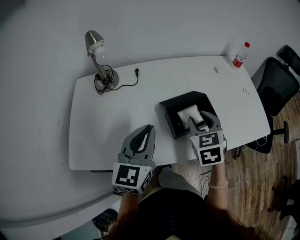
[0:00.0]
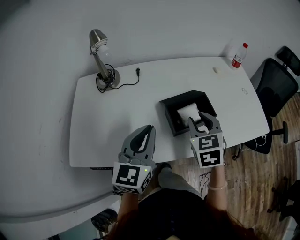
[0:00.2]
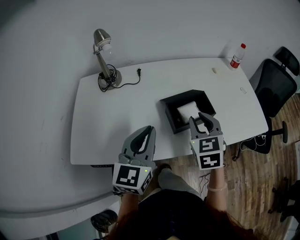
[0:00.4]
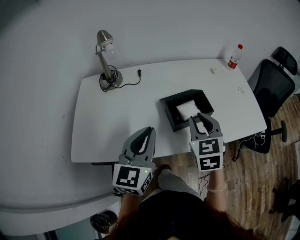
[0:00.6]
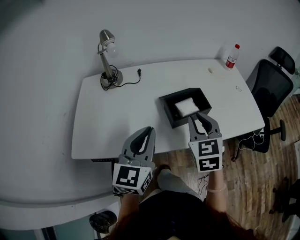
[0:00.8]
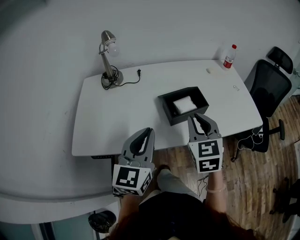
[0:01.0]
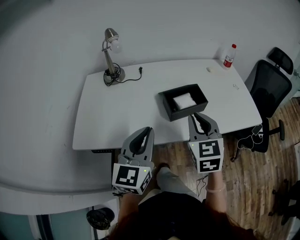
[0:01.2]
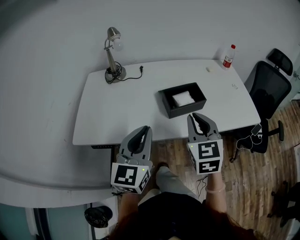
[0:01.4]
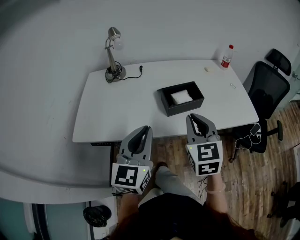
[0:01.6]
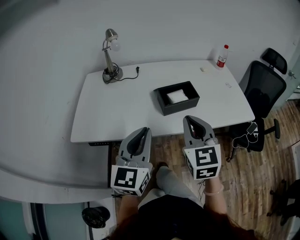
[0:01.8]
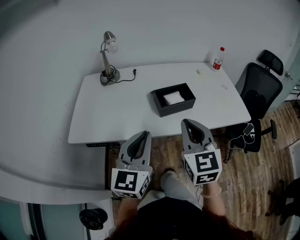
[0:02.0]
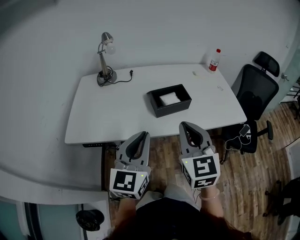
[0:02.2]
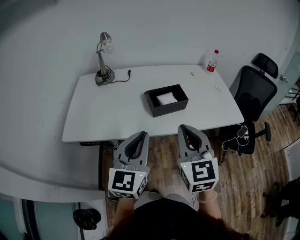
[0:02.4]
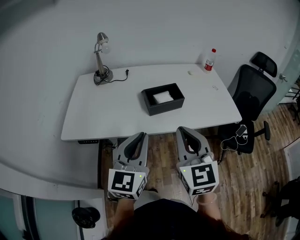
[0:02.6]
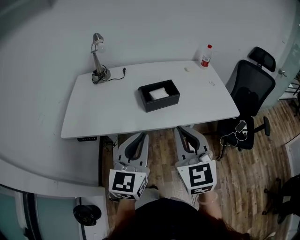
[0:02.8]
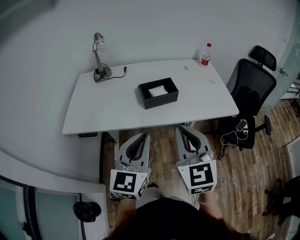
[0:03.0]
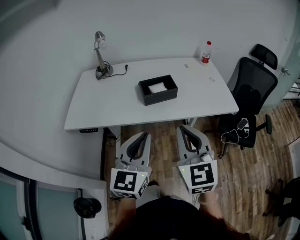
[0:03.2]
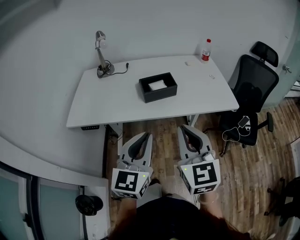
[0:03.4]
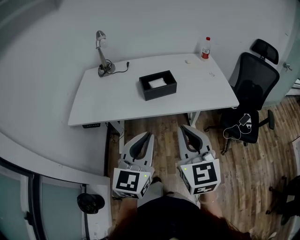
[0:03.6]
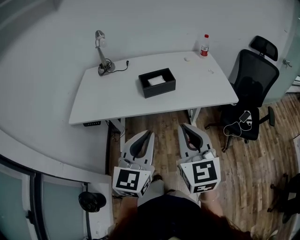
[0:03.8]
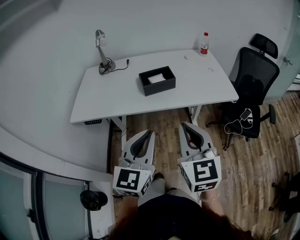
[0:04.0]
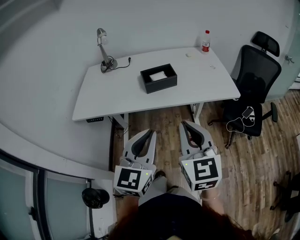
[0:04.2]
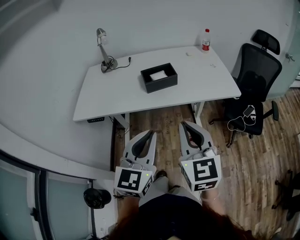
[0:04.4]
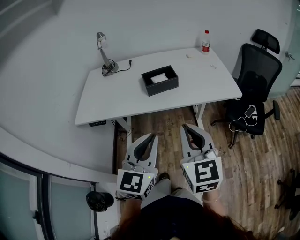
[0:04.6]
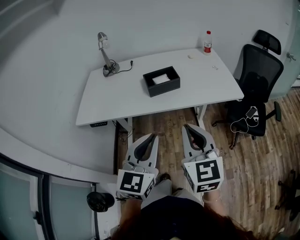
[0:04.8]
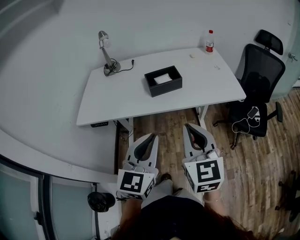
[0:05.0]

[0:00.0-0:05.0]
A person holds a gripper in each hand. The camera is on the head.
0:00.0 to 0:01.6: The left gripper heads backward, covering about 15 cm. Meanwhile the right gripper heads backward and upward, covering roughly 20 cm, swivels roughly 20 degrees, and closes up.
0:01.6 to 0:03.4: The left gripper heads to the right and backward, covering approximately 20 cm; the right gripper is displaced backward and to the right by approximately 20 cm.
0:03.4 to 0:05.0: There are only small adjustments of the grippers.

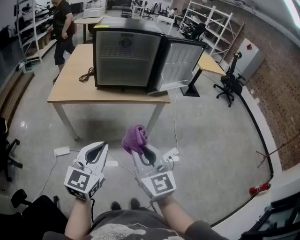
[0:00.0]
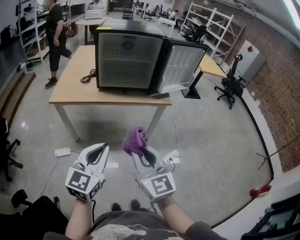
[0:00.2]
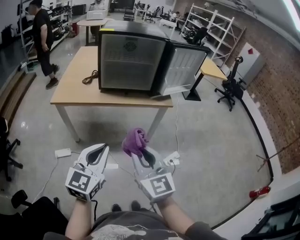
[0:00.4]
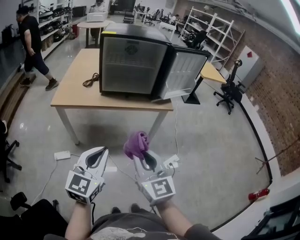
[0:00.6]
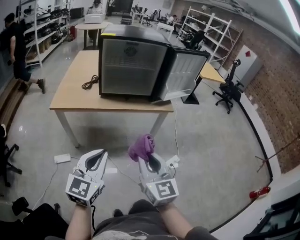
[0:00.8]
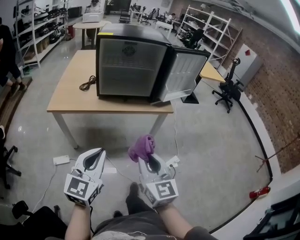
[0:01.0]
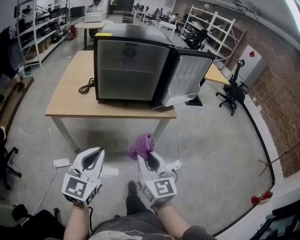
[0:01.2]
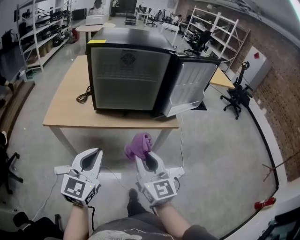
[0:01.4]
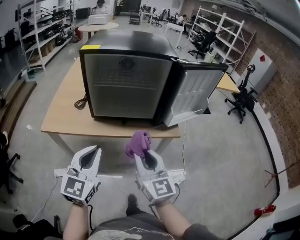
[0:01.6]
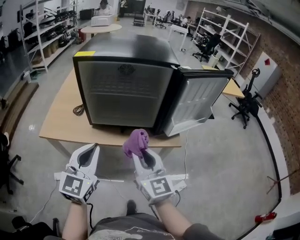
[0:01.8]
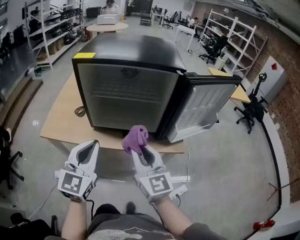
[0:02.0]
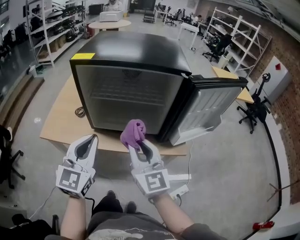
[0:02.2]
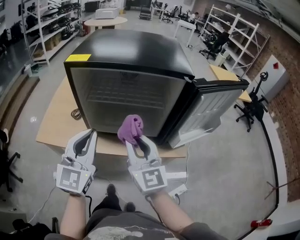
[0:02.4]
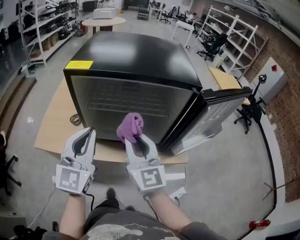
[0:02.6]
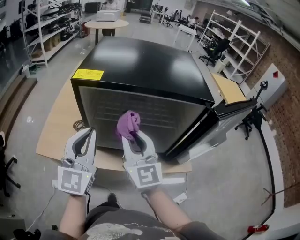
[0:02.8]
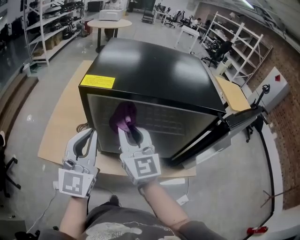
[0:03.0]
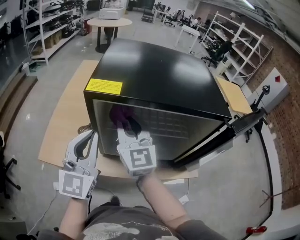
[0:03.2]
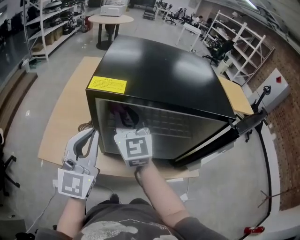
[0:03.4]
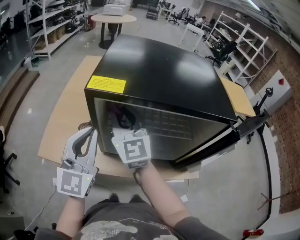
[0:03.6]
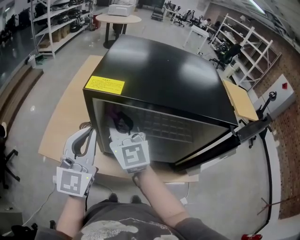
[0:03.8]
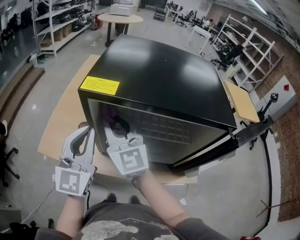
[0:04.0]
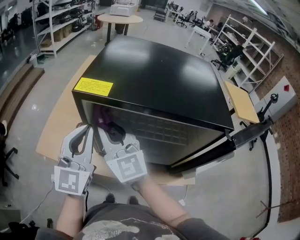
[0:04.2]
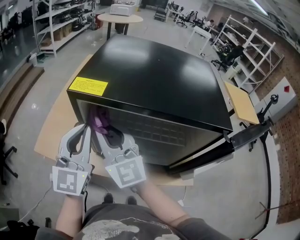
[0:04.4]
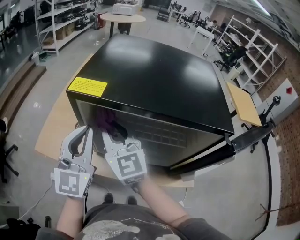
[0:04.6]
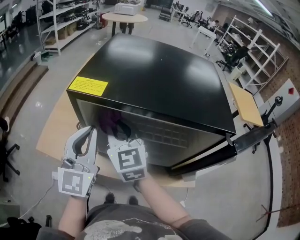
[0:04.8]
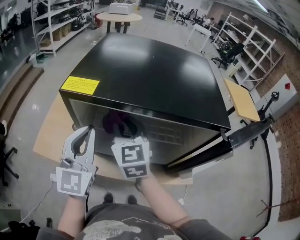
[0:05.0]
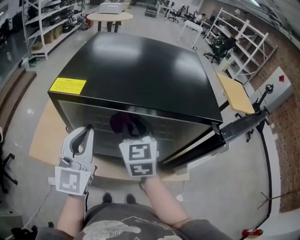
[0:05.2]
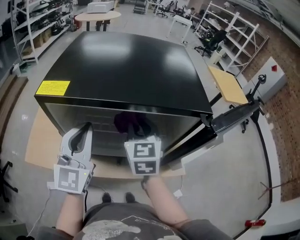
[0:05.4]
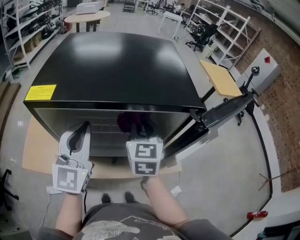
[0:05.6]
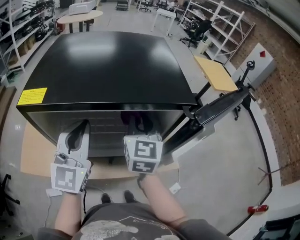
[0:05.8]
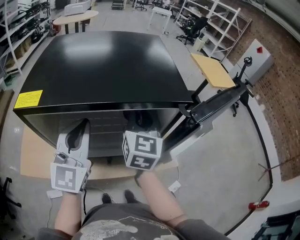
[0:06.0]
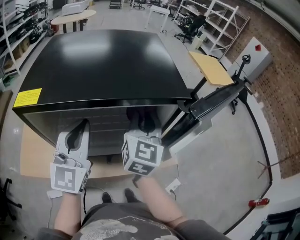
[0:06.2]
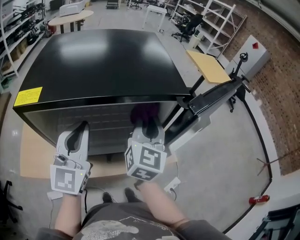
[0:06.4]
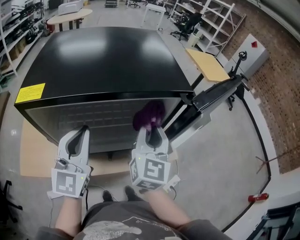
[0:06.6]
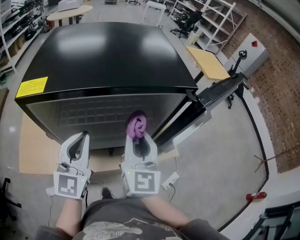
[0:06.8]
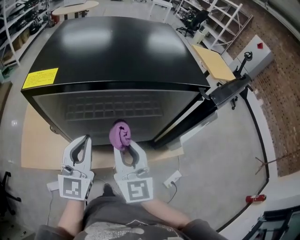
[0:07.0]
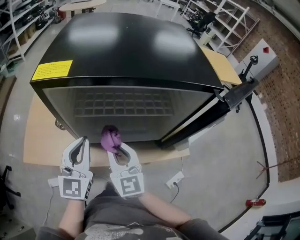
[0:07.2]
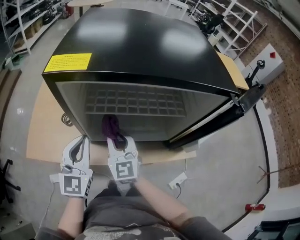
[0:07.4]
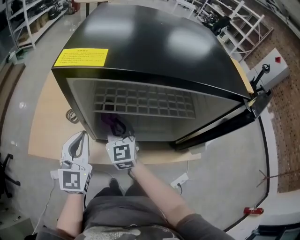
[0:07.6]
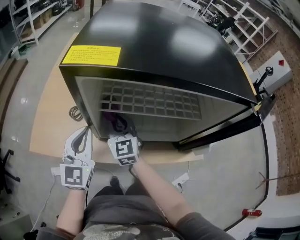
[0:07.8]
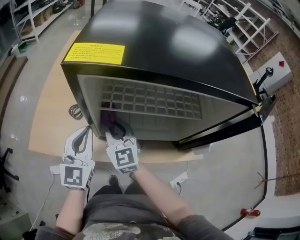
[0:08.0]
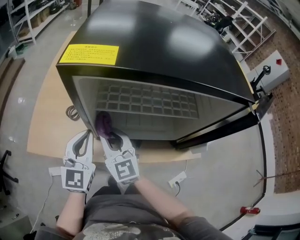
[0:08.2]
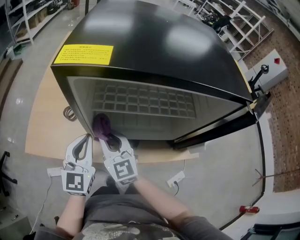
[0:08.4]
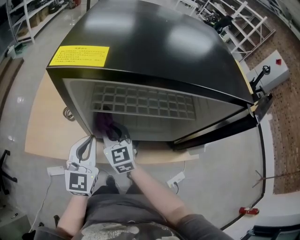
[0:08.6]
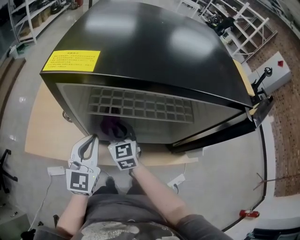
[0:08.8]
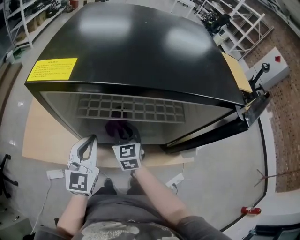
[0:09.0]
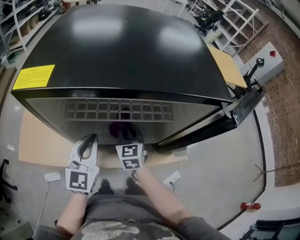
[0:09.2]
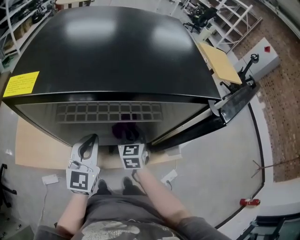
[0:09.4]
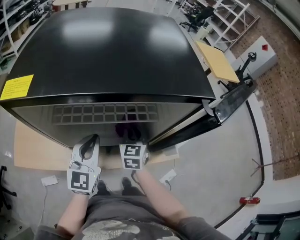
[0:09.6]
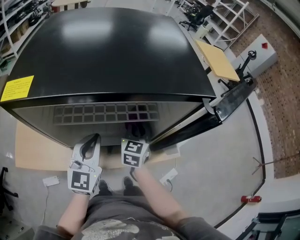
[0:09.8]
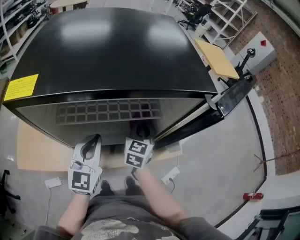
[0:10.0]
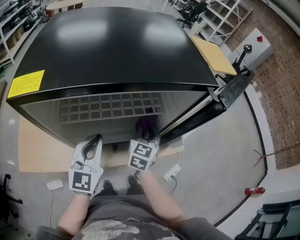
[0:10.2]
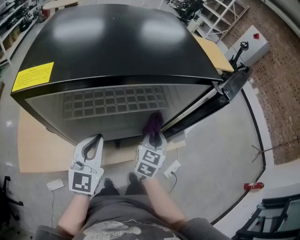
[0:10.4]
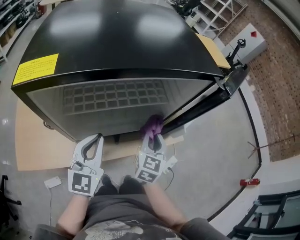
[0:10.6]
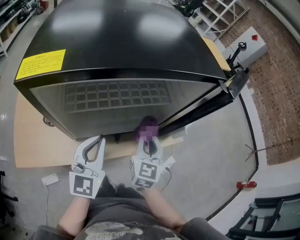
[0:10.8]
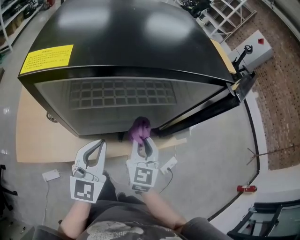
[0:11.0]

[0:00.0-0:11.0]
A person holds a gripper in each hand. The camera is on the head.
0:00.0 to 0:01.6: Both grippers move forward, roughly 25 cm.
0:01.6 to 0:03.2: The left gripper goes approximately 25 cm forward. Meanwhile the right gripper is displaced forward and to the left by roughly 35 cm.
0:04.8 to 0:06.2: The right gripper ends up some 25 cm from where it was, and turns by approximately 50 degrees, while the left gripper moves approximately 10 cm.
0:06.2 to 0:07.8: The right gripper ends up some 35 cm from where it was, and rotates roughly 40 degrees, while the left gripper moves some 20 cm.
0:07.8 to 0:09.4: The two grippers go some 20 cm to the right. The right gripper swivels about 30 degrees.
0:09.4 to 0:11.0: The left gripper moves backward, some 5 cm. The right gripper goes roughly 15 cm backward and upward, and turns by about 20 degrees.

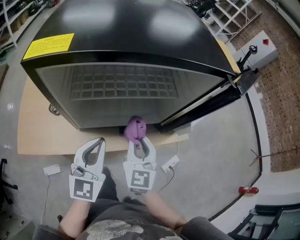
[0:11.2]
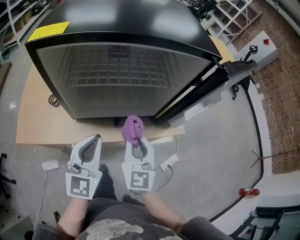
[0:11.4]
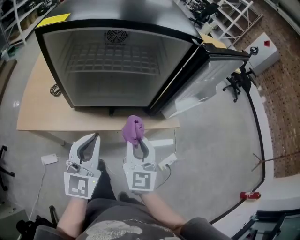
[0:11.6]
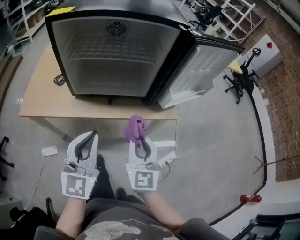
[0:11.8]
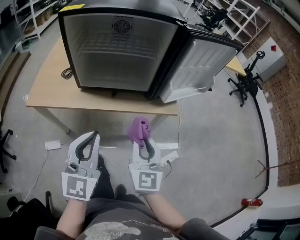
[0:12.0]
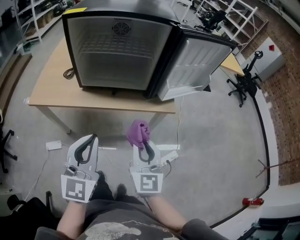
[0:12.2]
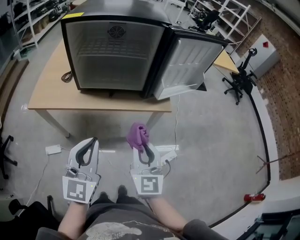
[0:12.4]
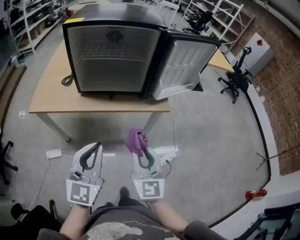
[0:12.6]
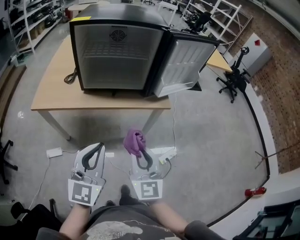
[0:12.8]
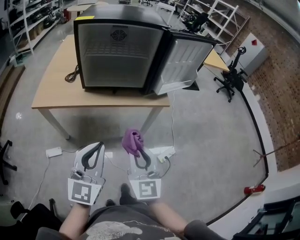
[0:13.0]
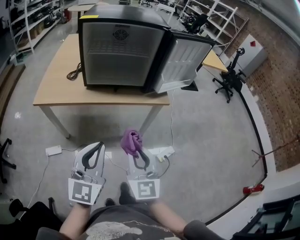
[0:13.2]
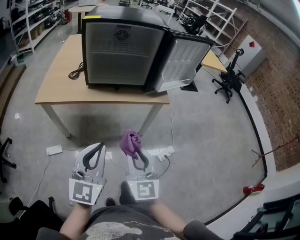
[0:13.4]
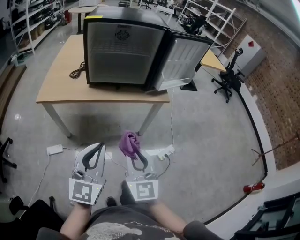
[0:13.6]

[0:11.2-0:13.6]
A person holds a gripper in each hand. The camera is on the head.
0:11.2 to 0:12.4: The grippers both shift backward and to the right by about 25 cm.
0:12.4 to 0:13.6: The right gripper is displaced backward and to the left by about 15 cm; the left gripper travels backward by some 15 cm.

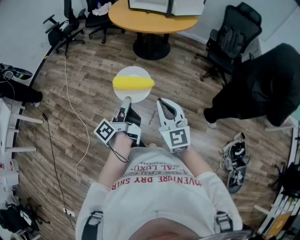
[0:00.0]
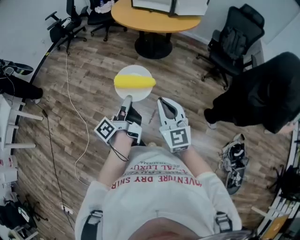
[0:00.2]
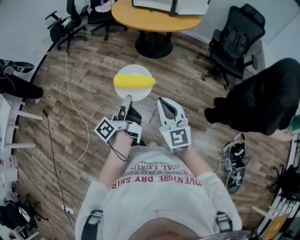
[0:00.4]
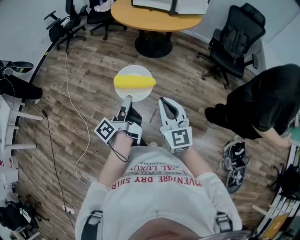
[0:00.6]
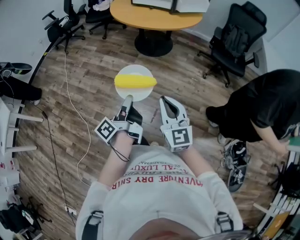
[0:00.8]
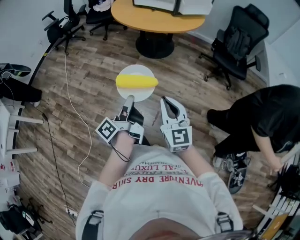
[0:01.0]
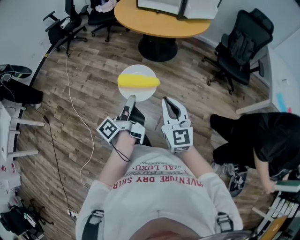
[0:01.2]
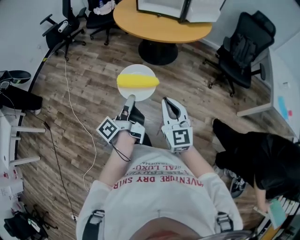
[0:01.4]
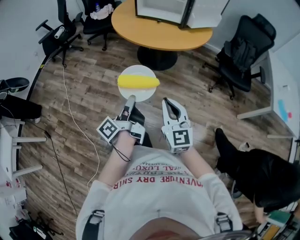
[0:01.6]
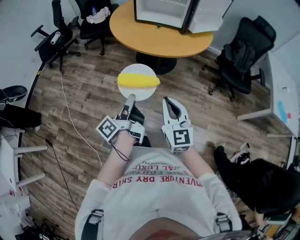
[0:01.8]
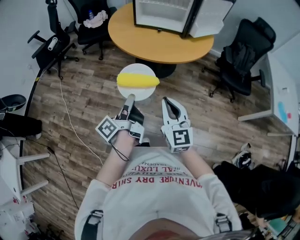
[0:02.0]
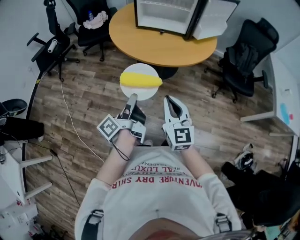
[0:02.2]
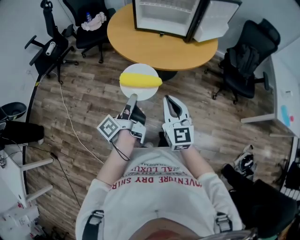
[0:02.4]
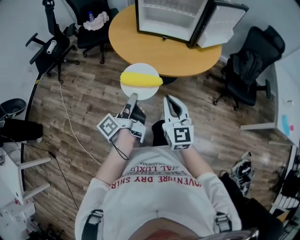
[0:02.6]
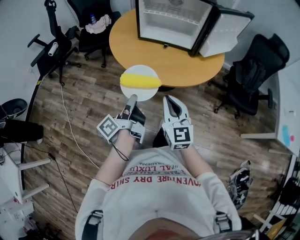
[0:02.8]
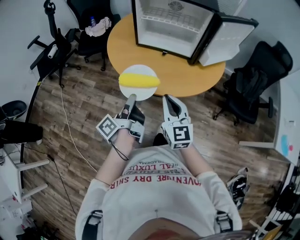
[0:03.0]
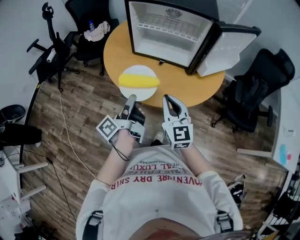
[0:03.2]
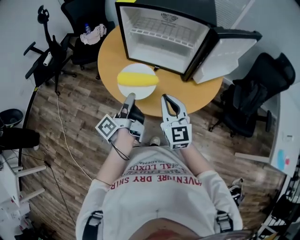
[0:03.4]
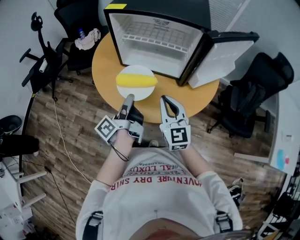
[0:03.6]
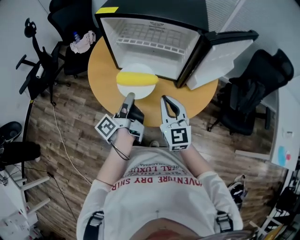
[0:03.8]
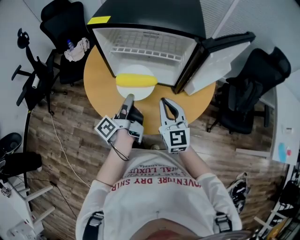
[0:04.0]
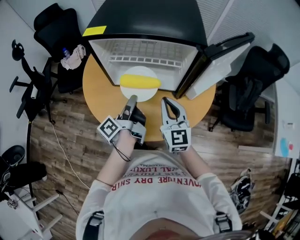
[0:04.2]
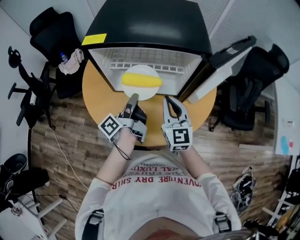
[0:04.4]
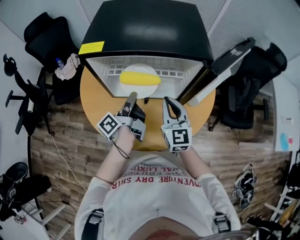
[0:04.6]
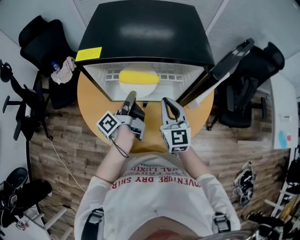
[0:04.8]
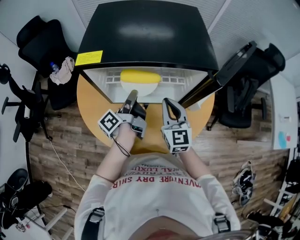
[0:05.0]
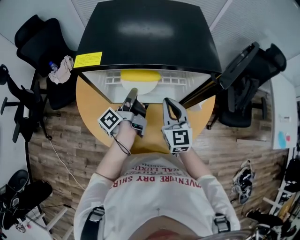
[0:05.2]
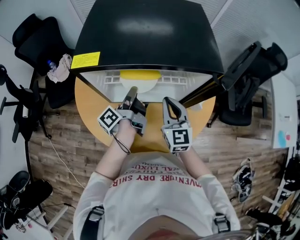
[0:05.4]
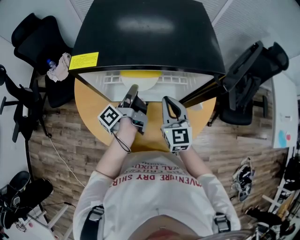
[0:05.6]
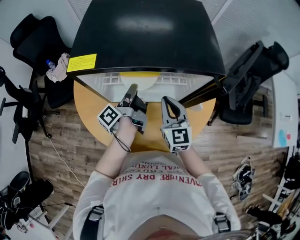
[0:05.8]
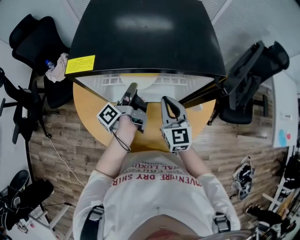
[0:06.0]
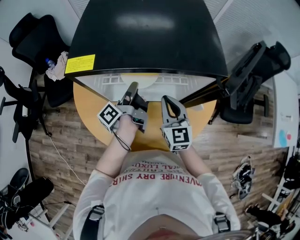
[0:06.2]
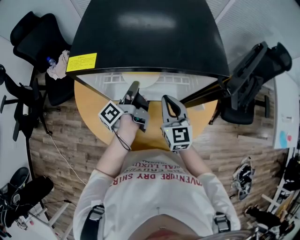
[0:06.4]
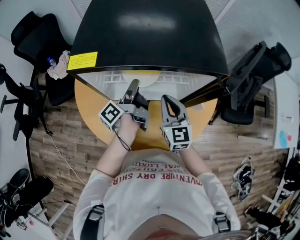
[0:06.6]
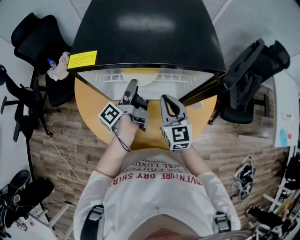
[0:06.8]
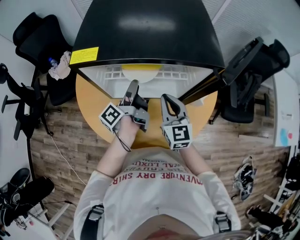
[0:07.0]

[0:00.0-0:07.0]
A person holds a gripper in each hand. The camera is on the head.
0:00.0 to 0:01.4: The right gripper moves approximately 20 cm.
0:01.4 to 0:02.8: The right gripper changes place by approximately 40 cm.
0:02.8 to 0:04.2: The right gripper shifts by about 35 cm.
0:04.2 to 0:05.6: The right gripper moves roughly 10 cm.
